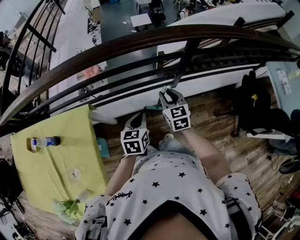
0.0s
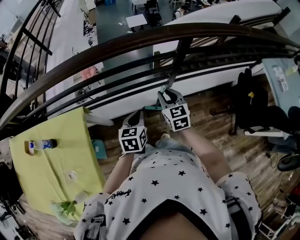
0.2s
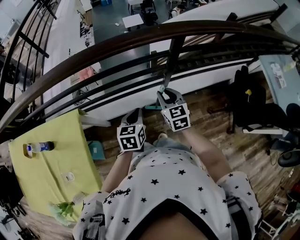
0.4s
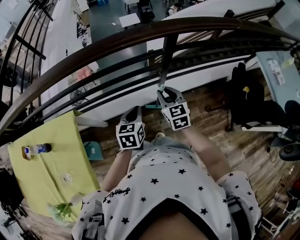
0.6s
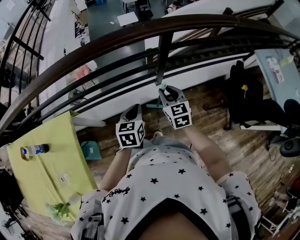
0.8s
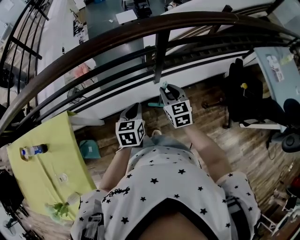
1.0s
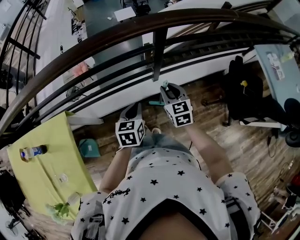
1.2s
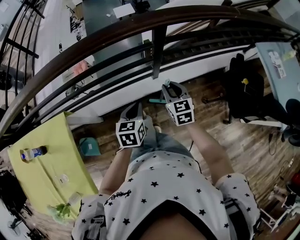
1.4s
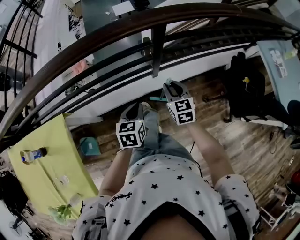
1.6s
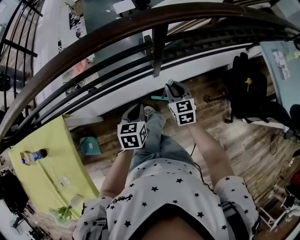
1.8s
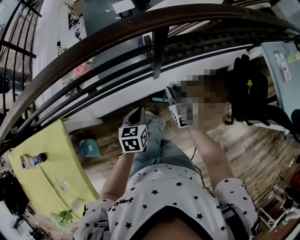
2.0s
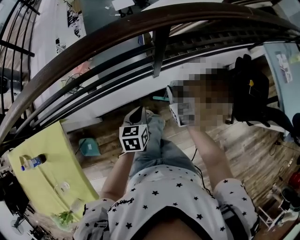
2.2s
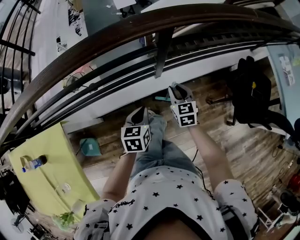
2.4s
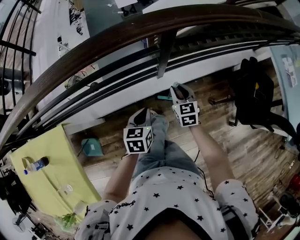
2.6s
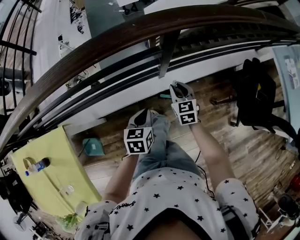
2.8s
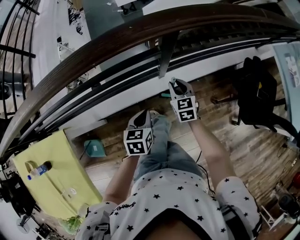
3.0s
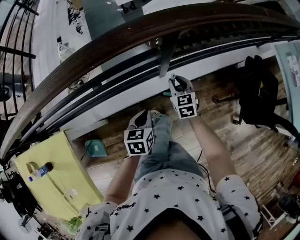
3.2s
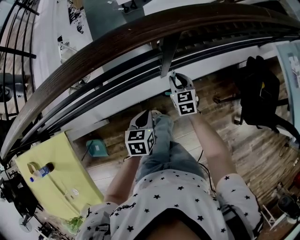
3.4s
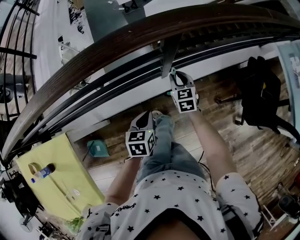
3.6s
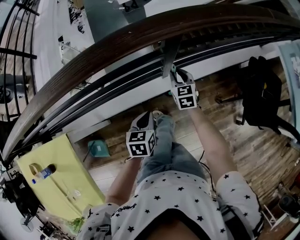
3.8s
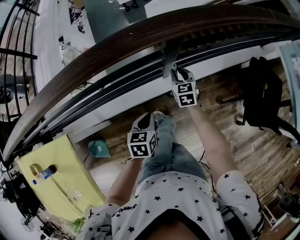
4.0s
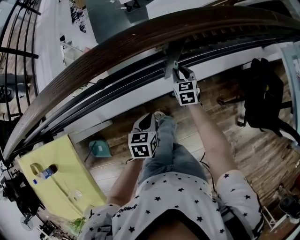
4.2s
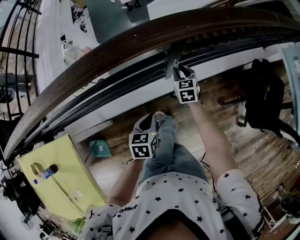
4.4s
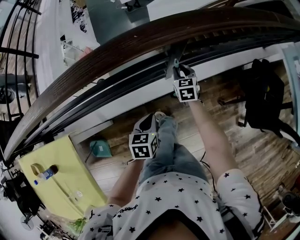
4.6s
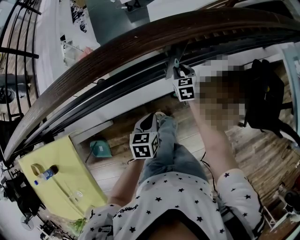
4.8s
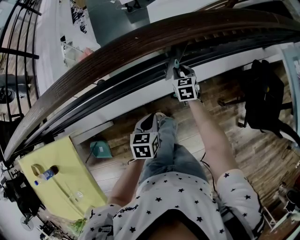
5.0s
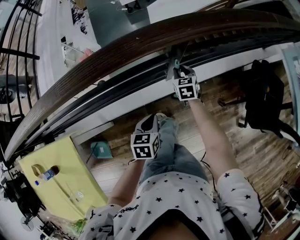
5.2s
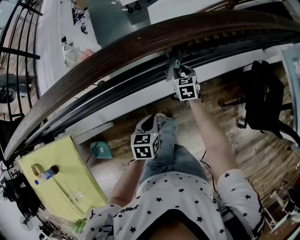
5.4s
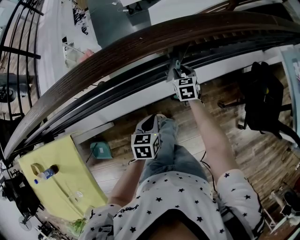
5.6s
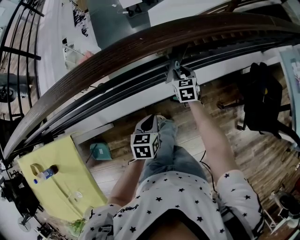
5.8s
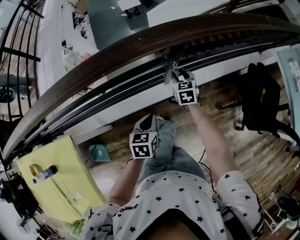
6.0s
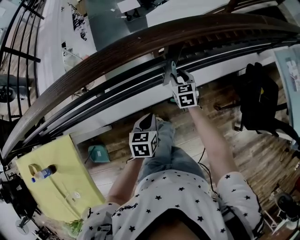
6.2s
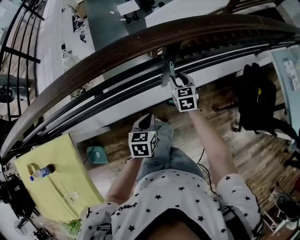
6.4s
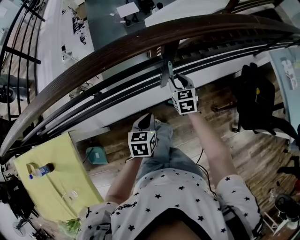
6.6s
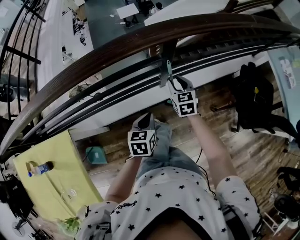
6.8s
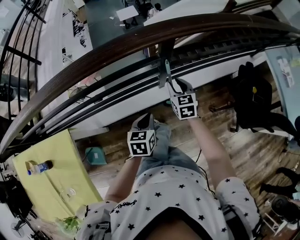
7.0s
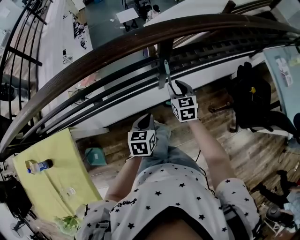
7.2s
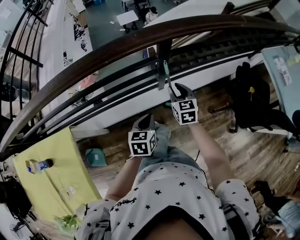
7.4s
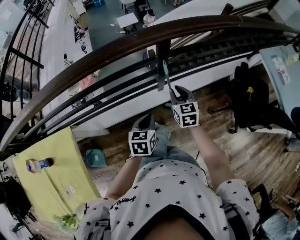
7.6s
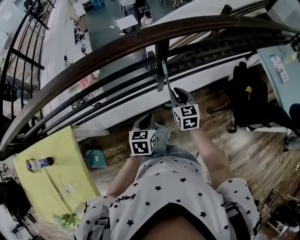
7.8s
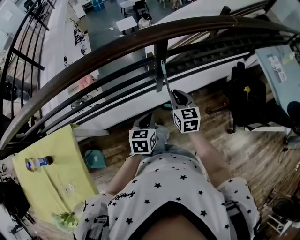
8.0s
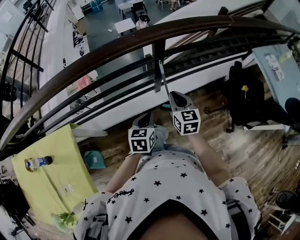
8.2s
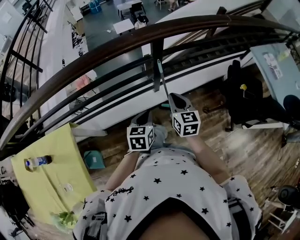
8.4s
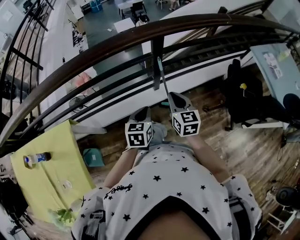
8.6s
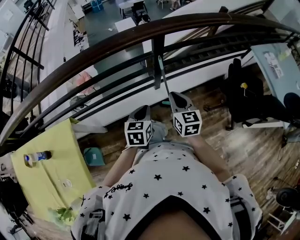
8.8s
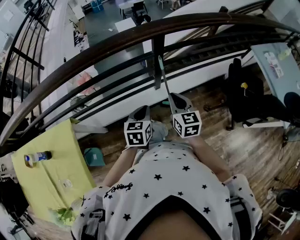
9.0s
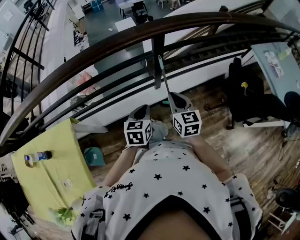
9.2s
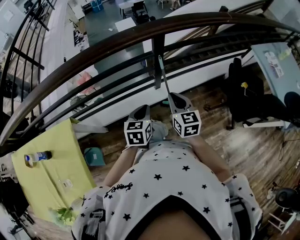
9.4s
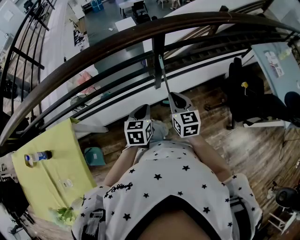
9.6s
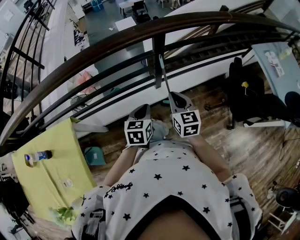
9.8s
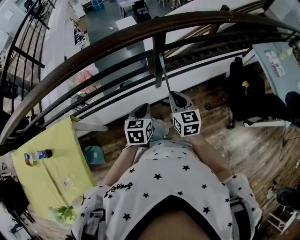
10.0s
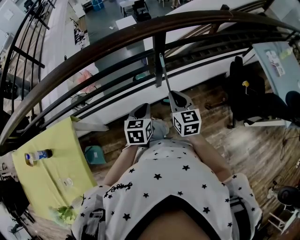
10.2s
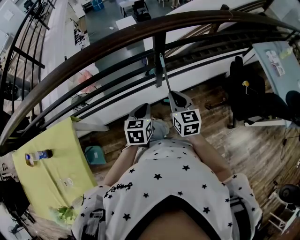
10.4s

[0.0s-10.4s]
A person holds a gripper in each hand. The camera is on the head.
0.0s to 1.4s: The two grippers go roughly 15 cm to the right.
1.4s to 3.0s: The left gripper goes roughly 10 cm downward and forward; the right gripper shifts roughly 15 cm forward and downward.
3.0s to 4.4s: The right gripper travels forward by roughly 10 cm.
4.4s to 6.0s: There are only small adjustments of the grippers.
6.0s to 7.4s: The left gripper shifts some 10 cm backward and upward. The right gripper shifts roughly 15 cm backward and upward.
7.4s to 9.0s: The left gripper moves approximately 5 cm. Meanwhile the right gripper moves backward and upward, about 15 cm, and closes.
9.0s to 10.4s: Neither gripper changes place.

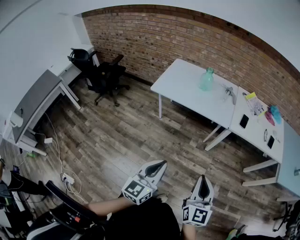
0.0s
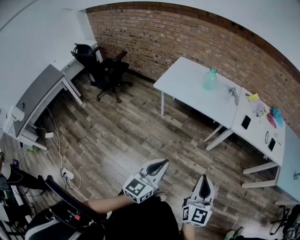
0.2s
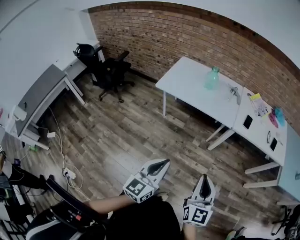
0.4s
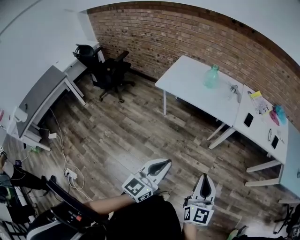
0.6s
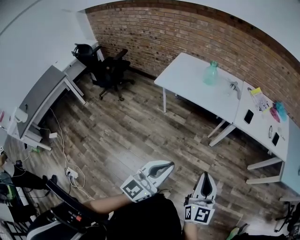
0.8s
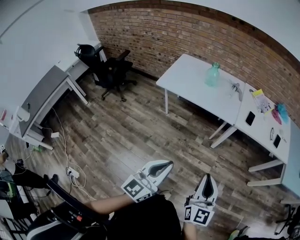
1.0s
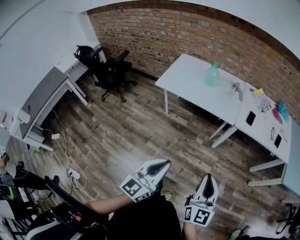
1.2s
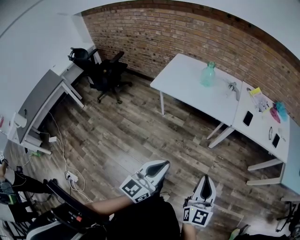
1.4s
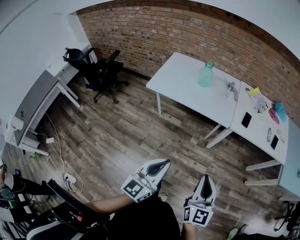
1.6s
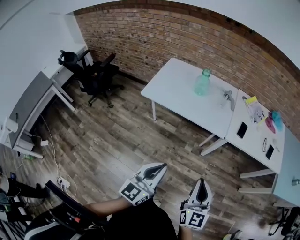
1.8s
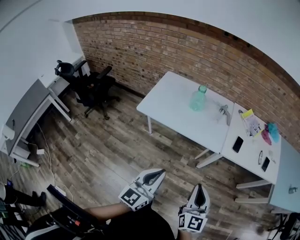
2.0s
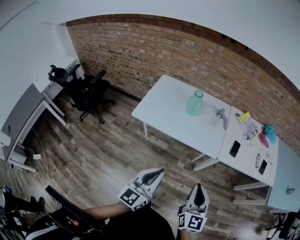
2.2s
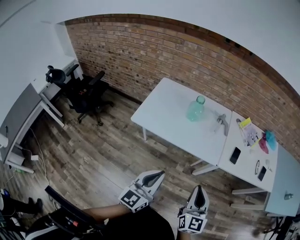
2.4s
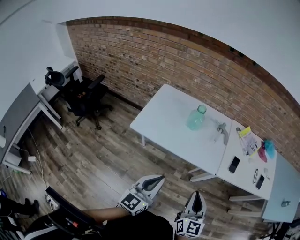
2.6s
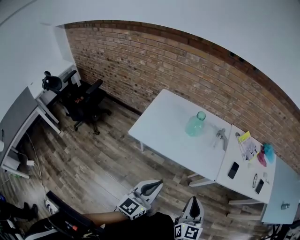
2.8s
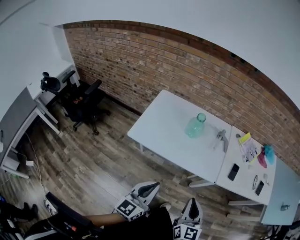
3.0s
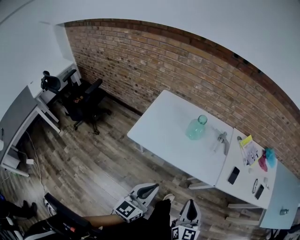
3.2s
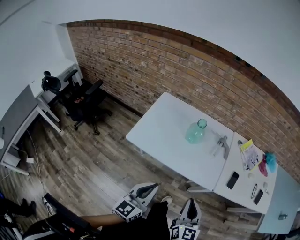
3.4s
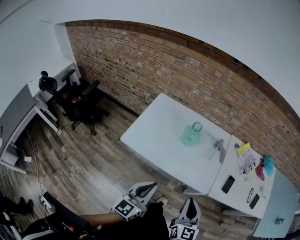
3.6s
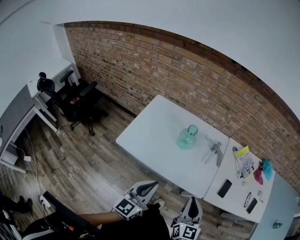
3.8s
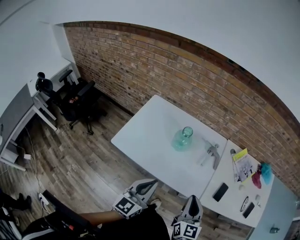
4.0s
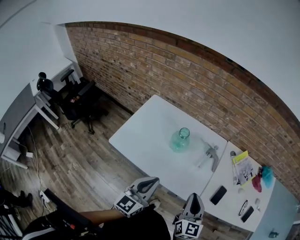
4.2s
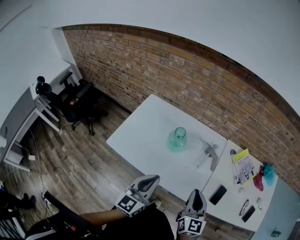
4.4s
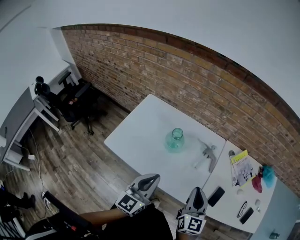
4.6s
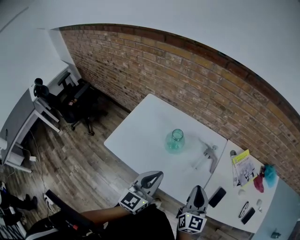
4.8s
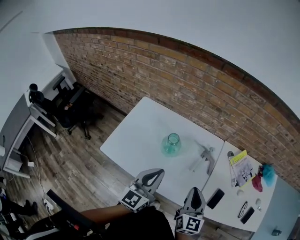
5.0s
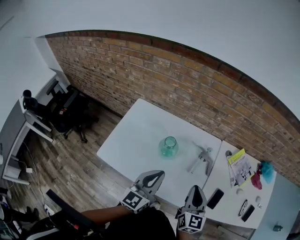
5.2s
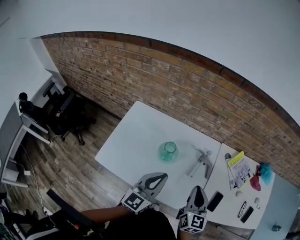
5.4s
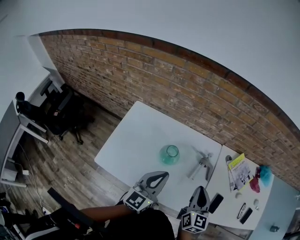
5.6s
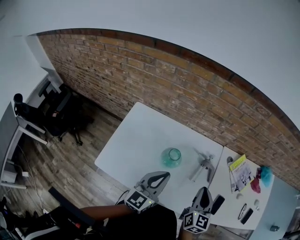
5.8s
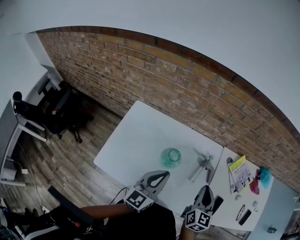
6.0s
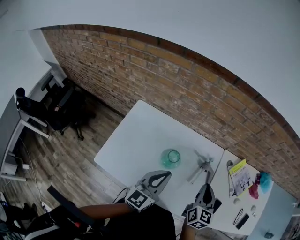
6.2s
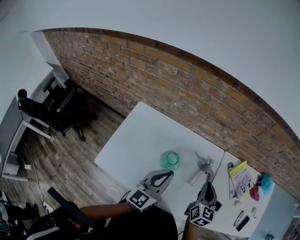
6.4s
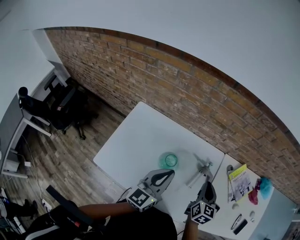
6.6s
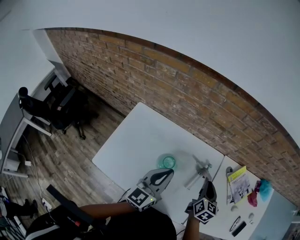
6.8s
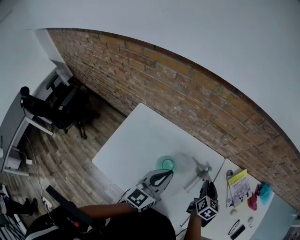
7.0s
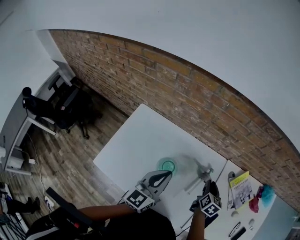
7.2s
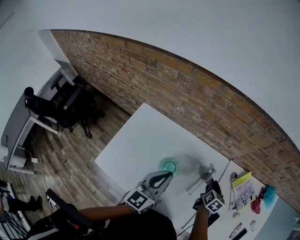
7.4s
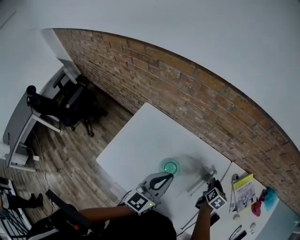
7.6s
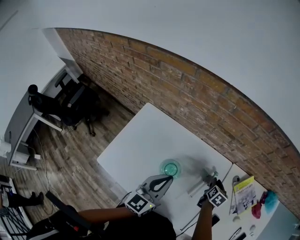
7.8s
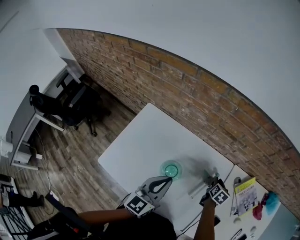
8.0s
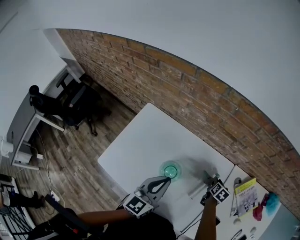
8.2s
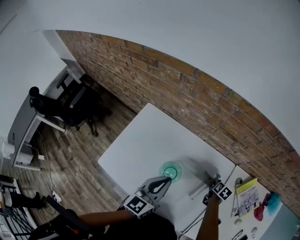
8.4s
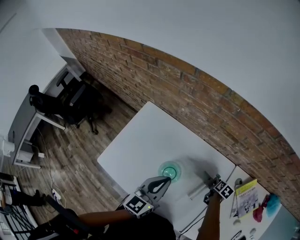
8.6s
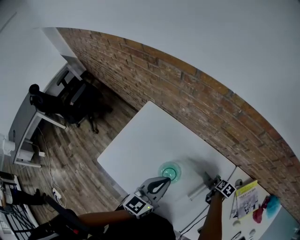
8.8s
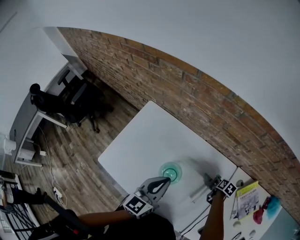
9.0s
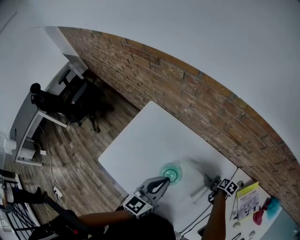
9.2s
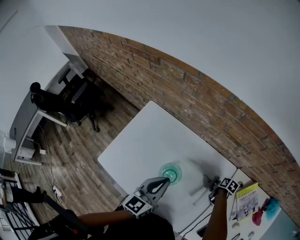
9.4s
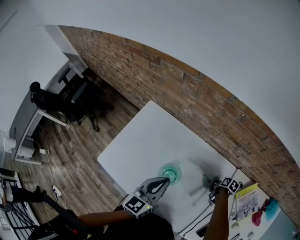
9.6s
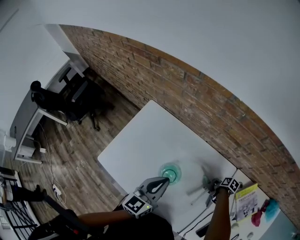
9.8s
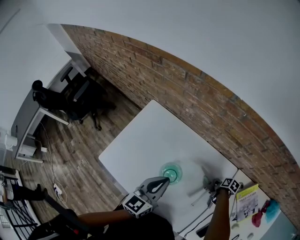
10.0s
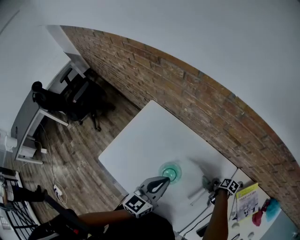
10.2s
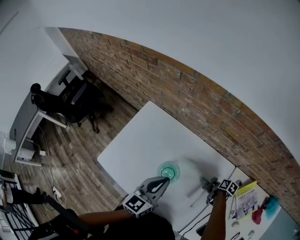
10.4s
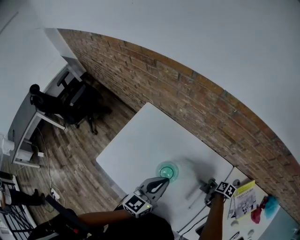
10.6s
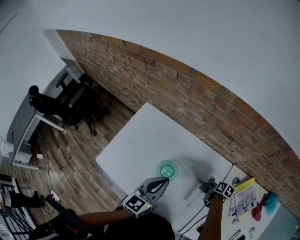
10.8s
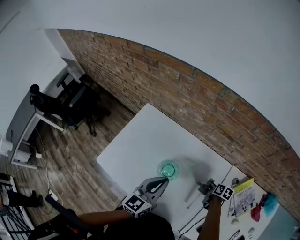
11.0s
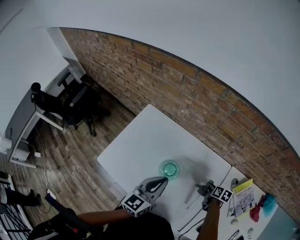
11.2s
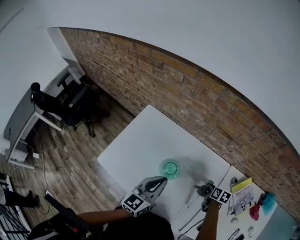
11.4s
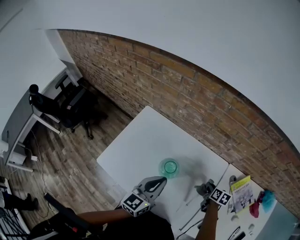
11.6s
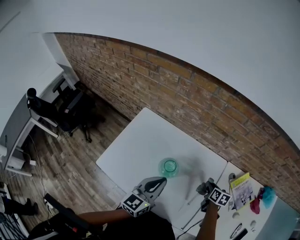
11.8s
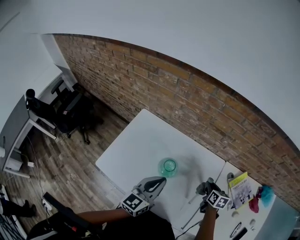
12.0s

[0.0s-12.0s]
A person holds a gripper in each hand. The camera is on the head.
0.0s to 1.6s: Both grippers move forward, about 5 cm.
1.6s to 3.0s: Both grippers travel together forward and to the left, roughly 30 cm.
3.0s to 4.4s: The grippers both shift forward and to the right by approximately 25 cm.
4.4s to 6.0s: Both grippers travel together forward, approximately 20 cm.
6.0s to 7.6s: The left gripper travels forward by about 10 cm, while the right gripper moves downward and forward, approximately 25 cm, and turns by approximately 30 degrees.
7.6s to 9.0s: The right gripper goes roughly 15 cm downward and forward, and turns by some 20 degrees.
9.0s to 10.4s: There are only small adjustments of the grippers.
10.4s to 12.0s: The right gripper travels upward and backward by approximately 15 cm, and changes its angle by approximately 30 degrees. The left gripper shifts about 5 cm backward.

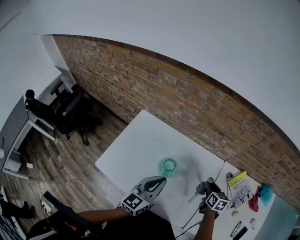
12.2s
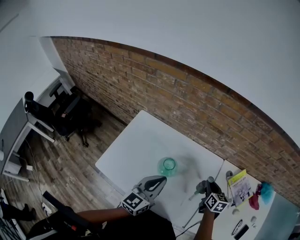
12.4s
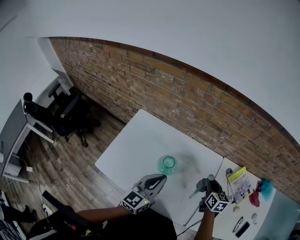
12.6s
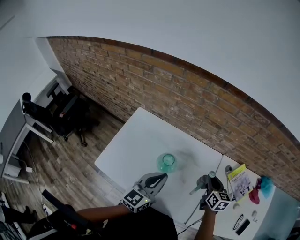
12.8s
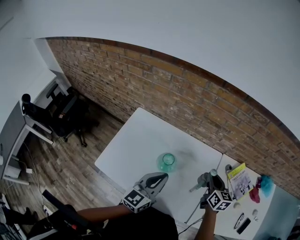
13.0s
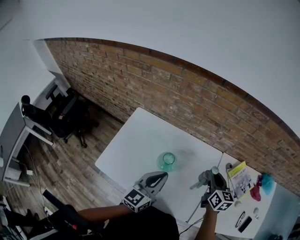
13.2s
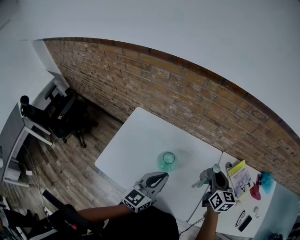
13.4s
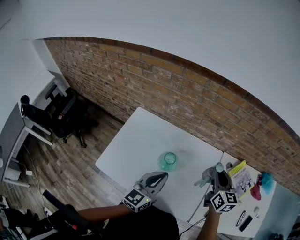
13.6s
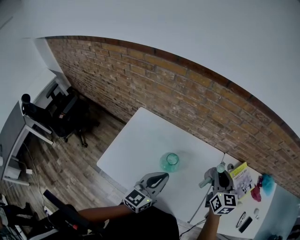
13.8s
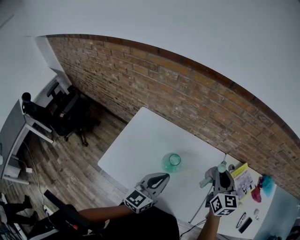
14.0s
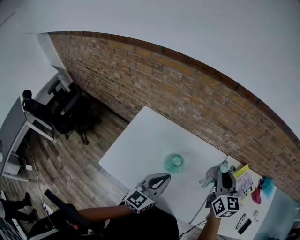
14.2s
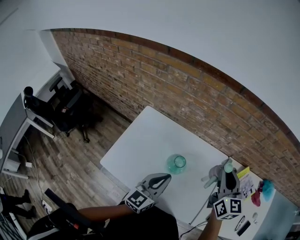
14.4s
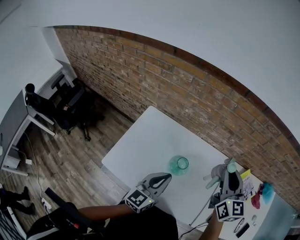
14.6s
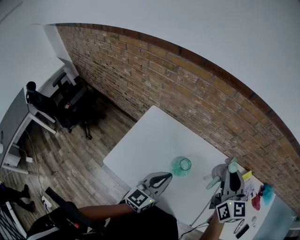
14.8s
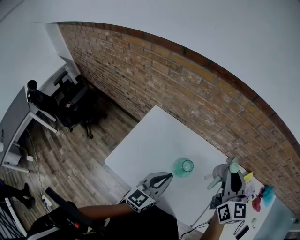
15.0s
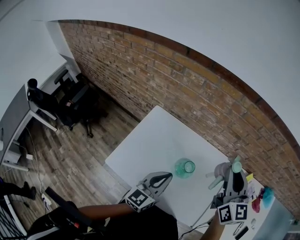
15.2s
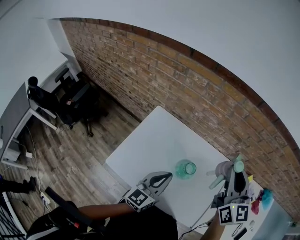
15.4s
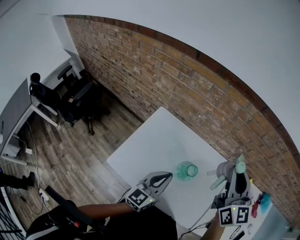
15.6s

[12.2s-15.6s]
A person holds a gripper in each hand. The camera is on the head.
12.2s to 13.8s: The right gripper moves upward, about 20 cm, and rotates roughly 30 degrees.
13.8s to 15.6s: The right gripper heads upward and to the left, covering about 20 cm; the left gripper shifts some 10 cm to the left.
